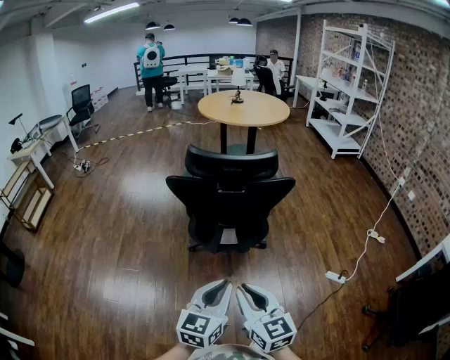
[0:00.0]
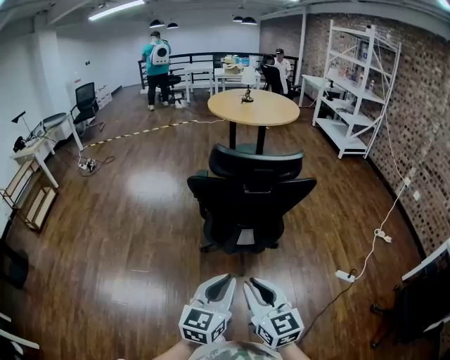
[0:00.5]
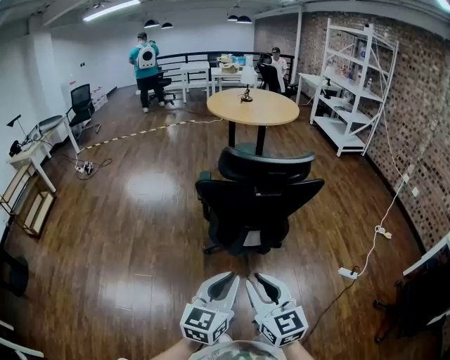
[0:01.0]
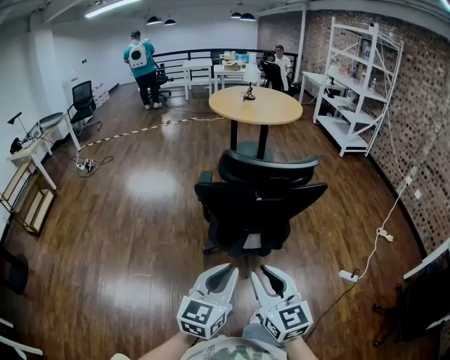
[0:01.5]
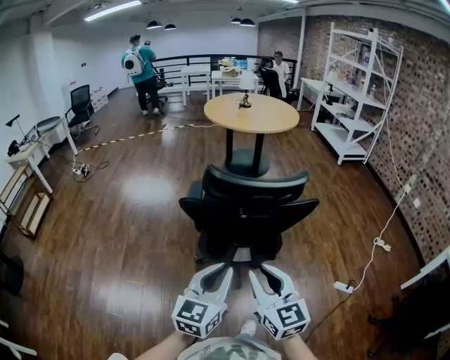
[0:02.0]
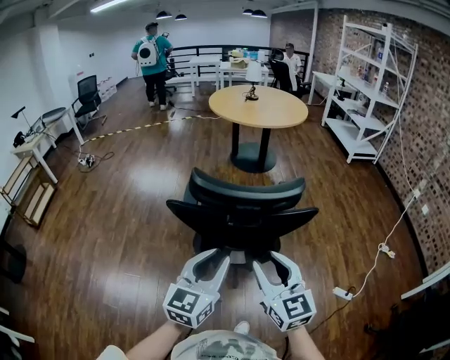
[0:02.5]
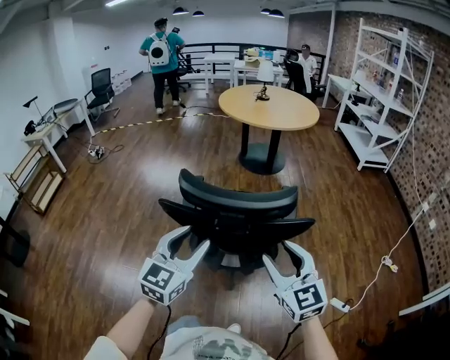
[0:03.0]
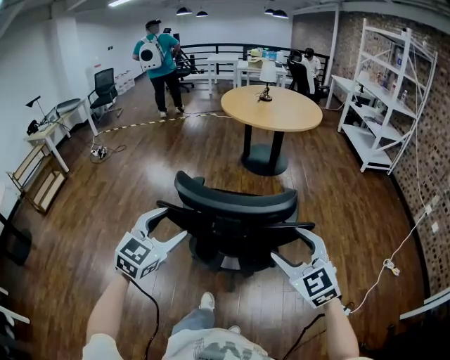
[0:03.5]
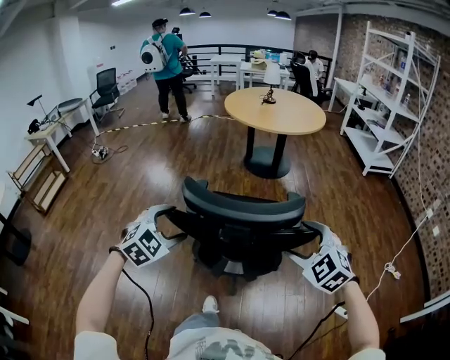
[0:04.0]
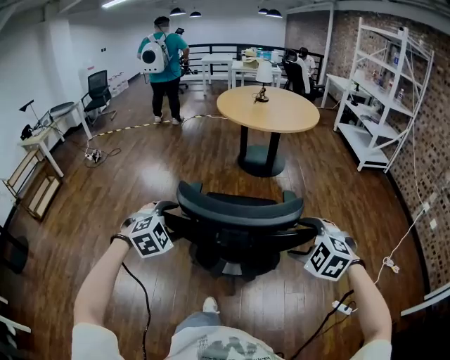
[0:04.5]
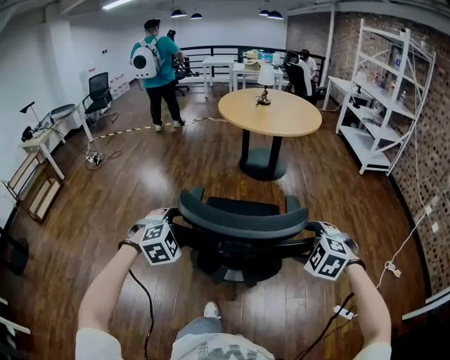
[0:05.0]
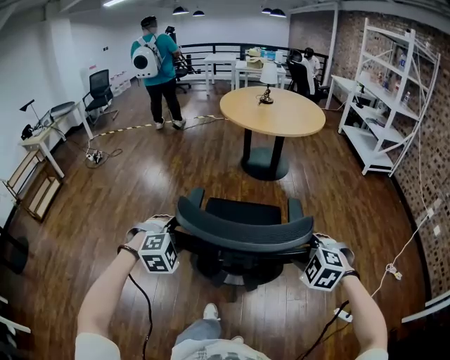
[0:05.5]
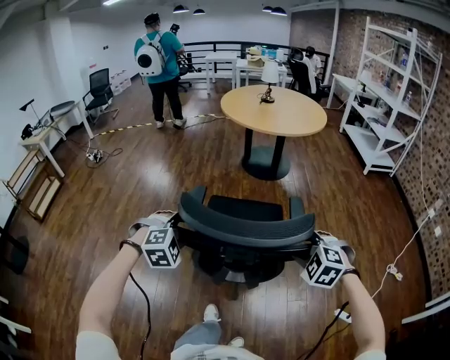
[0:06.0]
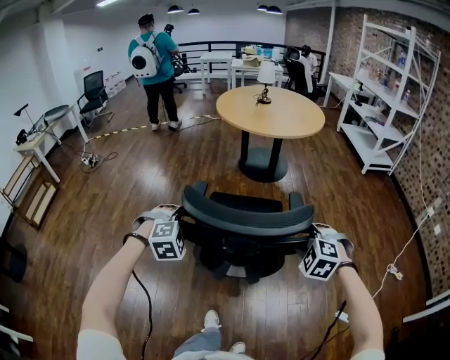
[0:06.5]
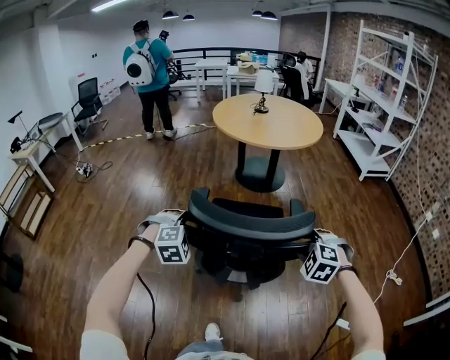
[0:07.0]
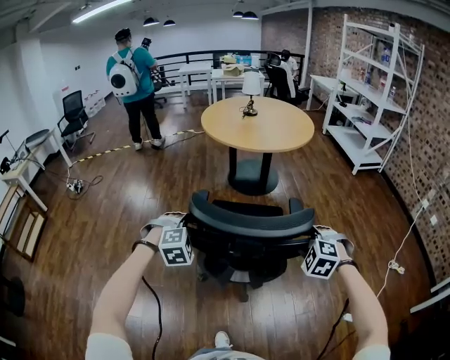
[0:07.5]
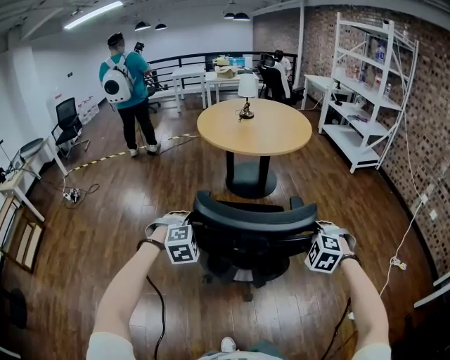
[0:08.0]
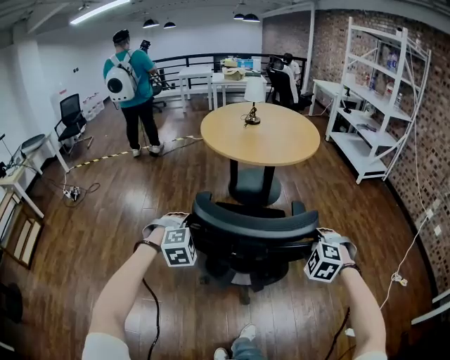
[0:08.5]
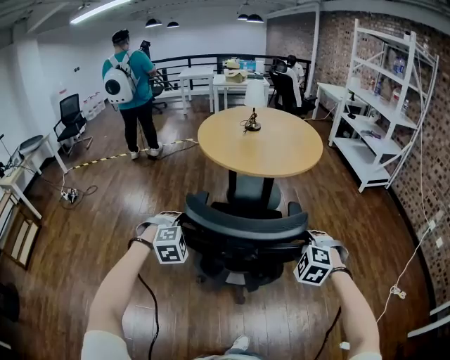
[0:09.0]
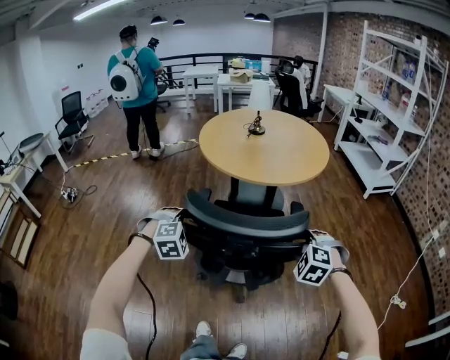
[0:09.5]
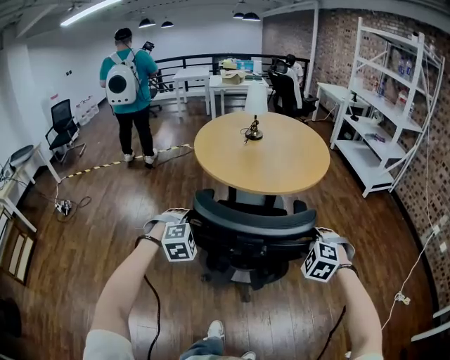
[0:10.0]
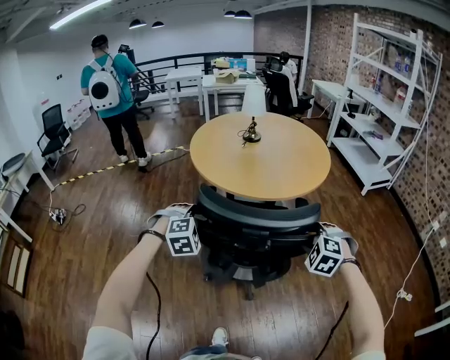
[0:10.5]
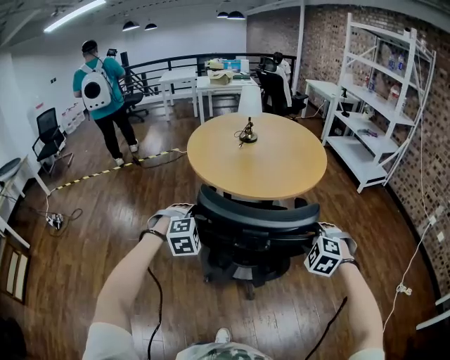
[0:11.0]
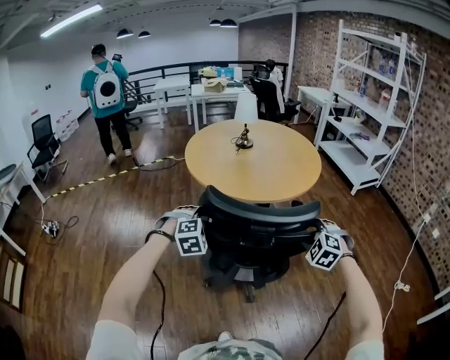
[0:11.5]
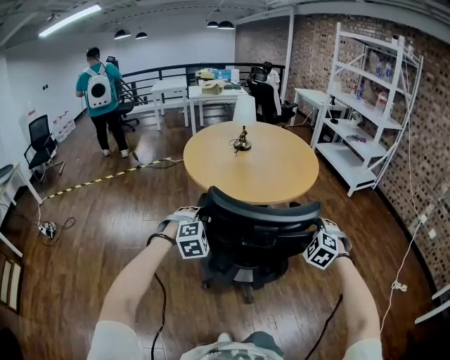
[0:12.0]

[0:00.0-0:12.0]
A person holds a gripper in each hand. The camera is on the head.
0:00.0 to 0:02.0: The left gripper heads forward and to the left, covering some 15 cm. The right gripper is displaced forward by about 15 cm.
0:02.0 to 0:04.0: The right gripper is displaced forward and to the right by about 25 cm, rolls counterclockwise, seen from behind, by approximately 40 degrees, and opens its fingers. Meanwhile the left gripper goes approximately 20 cm forward, points its fingers approximately 30 degrees further downward, and opens.
0:04.0 to 0:06.0: The right gripper heads downward and forward, covering some 10 cm, changes its angle by some 20 degrees, and closes its fingers. The left gripper heads forward and downward, covering approximately 10 cm, turns by roughly 30 degrees, and closes up.
0:06.0 to 0:08.0: The two grippers go some 20 cm forward.
0:08.0 to 0:10.0: Both grippers travel together forward, roughly 30 cm.
0:10.0 to 0:12.0: The two grippers go approximately 10 cm forward. The right gripper opens its fingers.

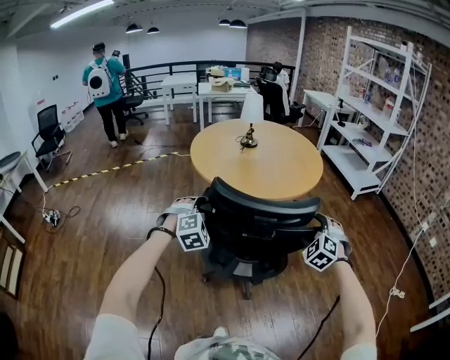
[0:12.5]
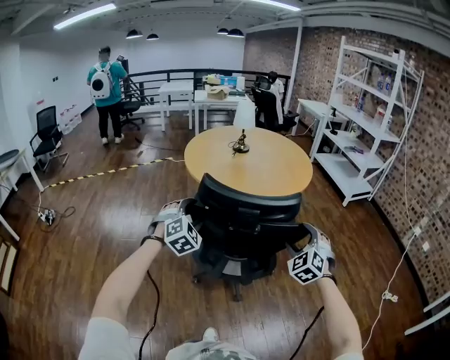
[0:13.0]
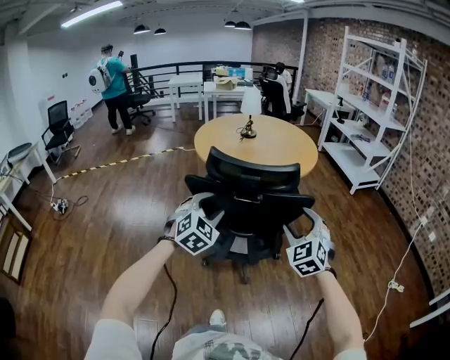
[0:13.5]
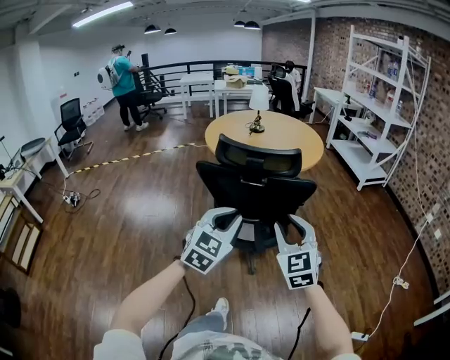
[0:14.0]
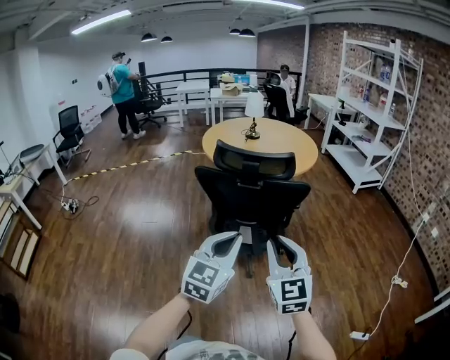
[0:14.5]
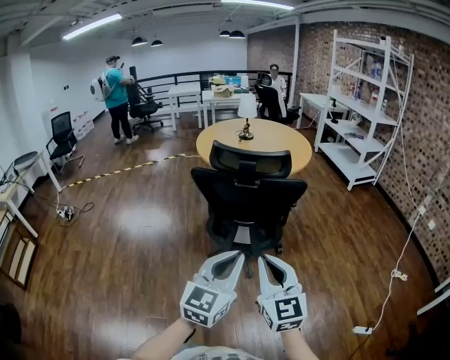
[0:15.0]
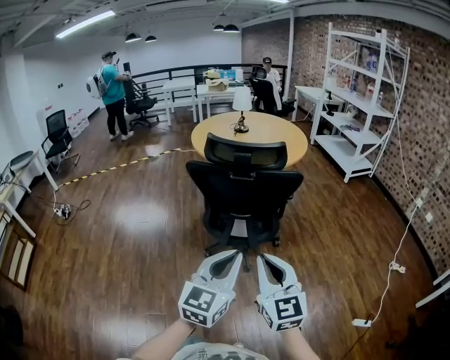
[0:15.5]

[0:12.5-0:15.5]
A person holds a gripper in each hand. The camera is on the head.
0:12.5 to 0:14.0: The right gripper moves backward, approximately 25 cm, rotates approximately 40 degrees, and closes. Meanwhile the left gripper moves backward and to the right, approximately 30 cm, changes its angle by approximately 50 degrees, and closes.
0:14.0 to 0:15.5: The two grippers go some 15 cm backward. The right gripper changes its angle by about 20 degrees, and closes. Meanwhile the left gripper rotates roughly 20 degrees.

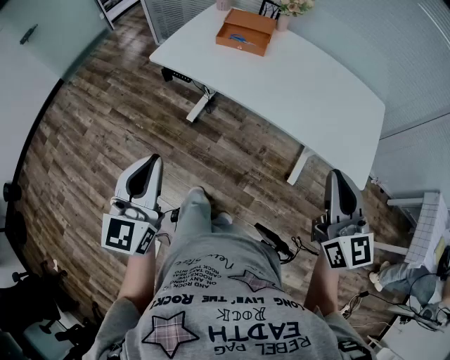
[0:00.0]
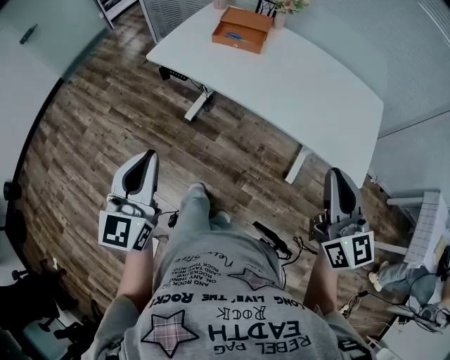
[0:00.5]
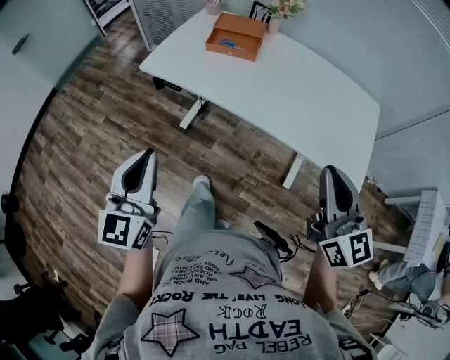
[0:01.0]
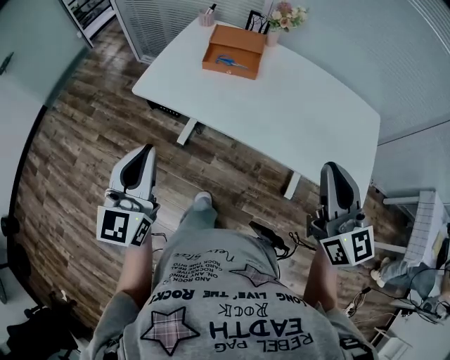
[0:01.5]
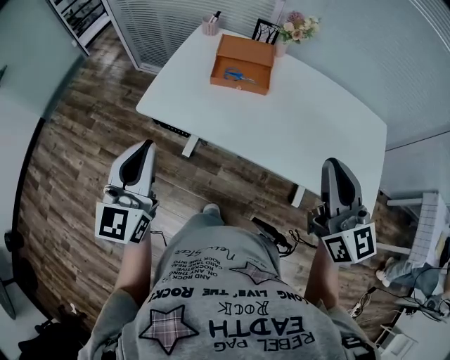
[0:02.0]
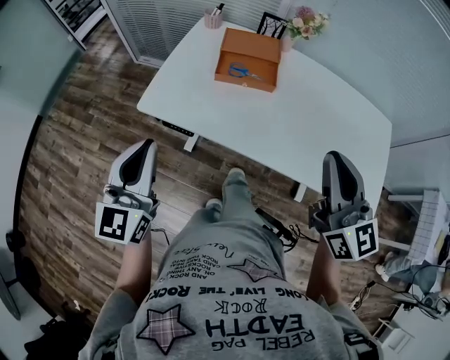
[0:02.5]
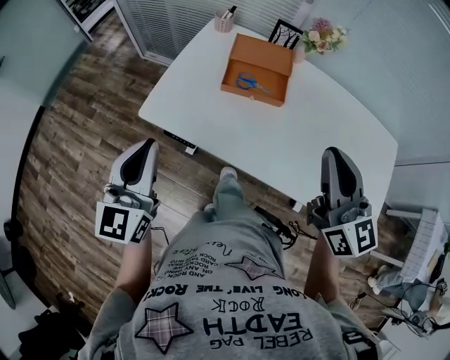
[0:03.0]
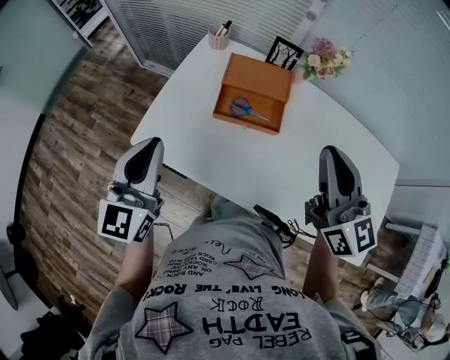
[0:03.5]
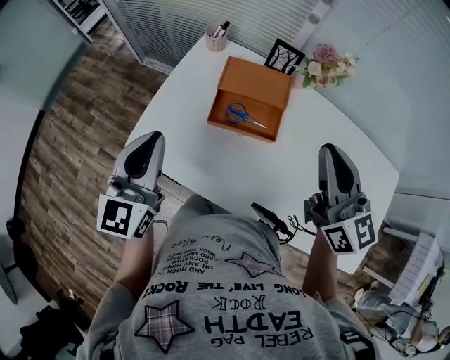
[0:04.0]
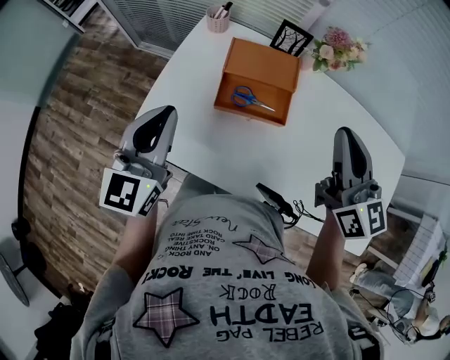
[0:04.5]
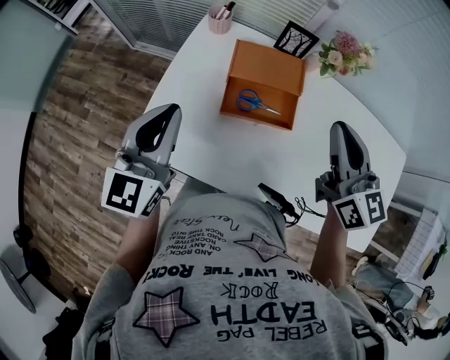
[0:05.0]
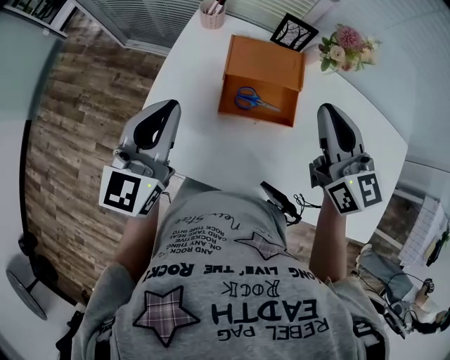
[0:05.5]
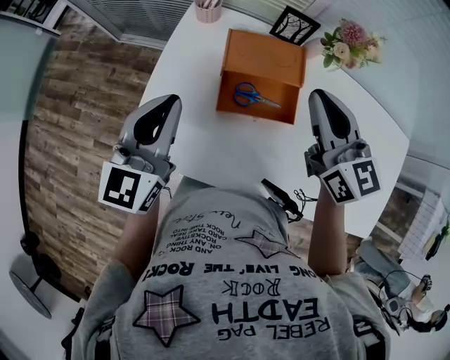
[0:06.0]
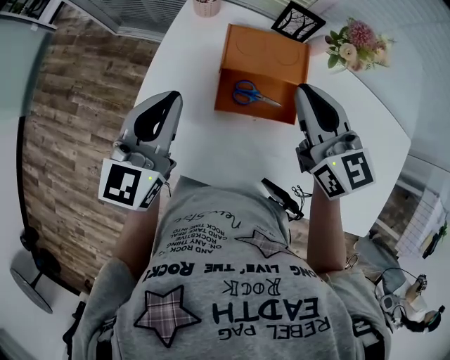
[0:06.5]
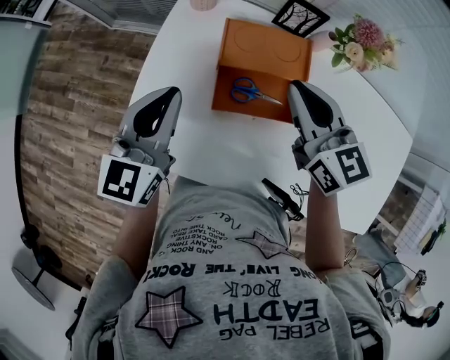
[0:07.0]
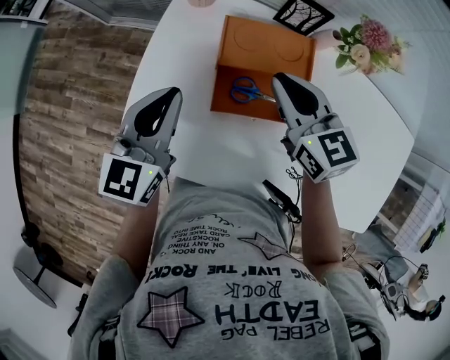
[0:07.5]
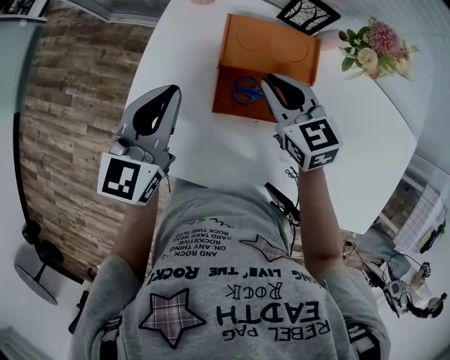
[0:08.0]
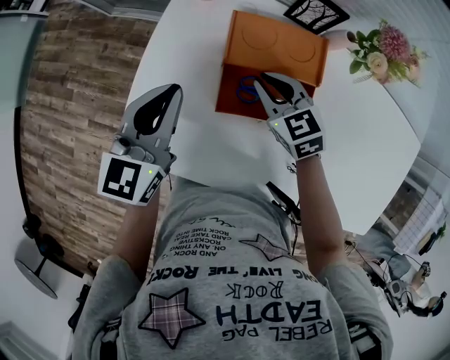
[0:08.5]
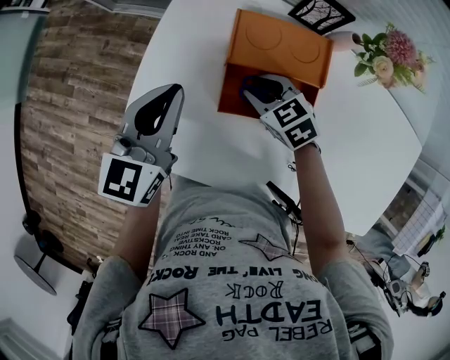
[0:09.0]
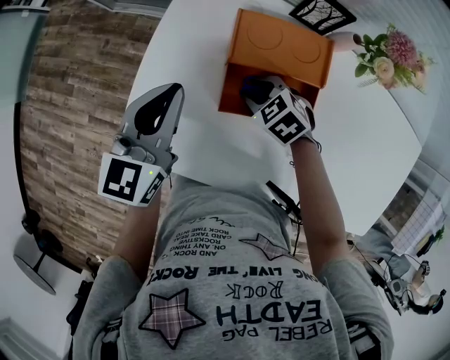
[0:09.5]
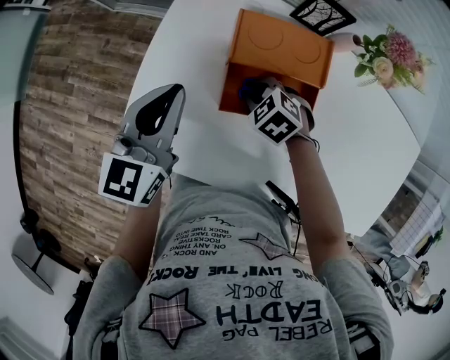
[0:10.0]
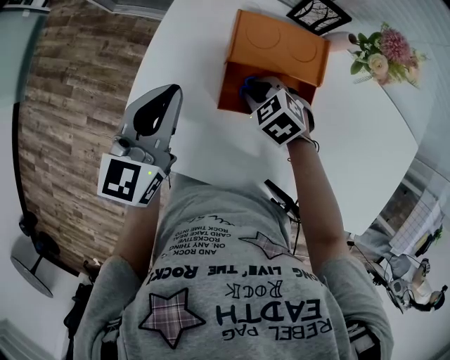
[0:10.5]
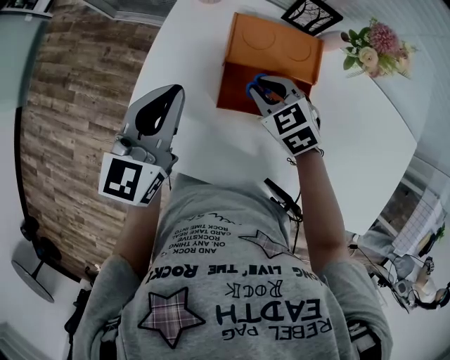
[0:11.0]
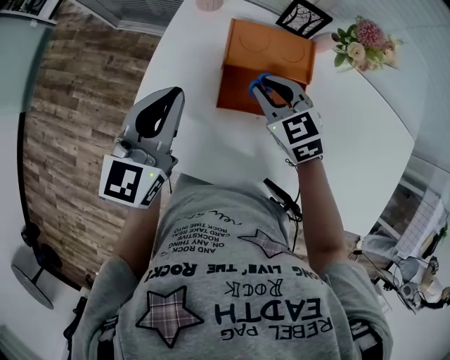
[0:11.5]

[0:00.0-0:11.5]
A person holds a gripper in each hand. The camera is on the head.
0:00.0 to 0:02.0: The two grippers go some 25 cm forward.
0:02.0 to 0:04.0: The grippers both shift forward by some 25 cm.
0:04.0 to 0:06.0: The right gripper is displaced forward, to the left and downward by some 15 cm, while the left gripper is displaced forward by approximately 10 cm.
0:06.0 to 0:07.5: The right gripper is displaced downward and forward by about 10 cm. Meanwhile the left gripper goes about 5 cm downward.
0:07.5 to 0:09.5: The right gripper shifts approximately 20 cm downward, points its fingers some 40 degrees further downward, and opens its fingers.
0:09.5 to 0:11.5: The left gripper is displaced upward by some 5 cm; the right gripper is displaced upward by some 15 cm, and changes its angle by about 30 degrees.
